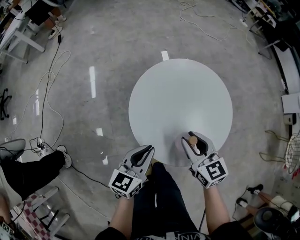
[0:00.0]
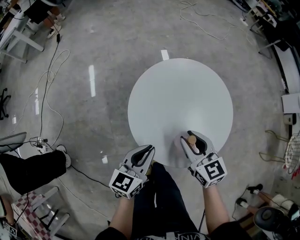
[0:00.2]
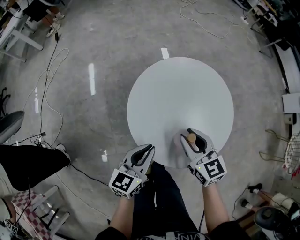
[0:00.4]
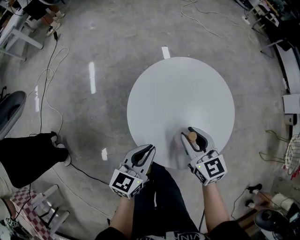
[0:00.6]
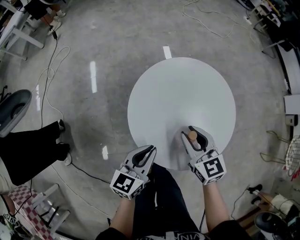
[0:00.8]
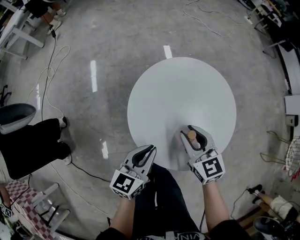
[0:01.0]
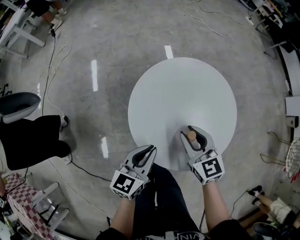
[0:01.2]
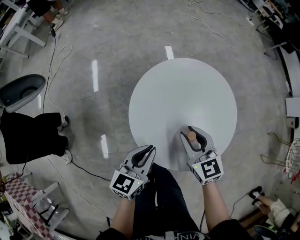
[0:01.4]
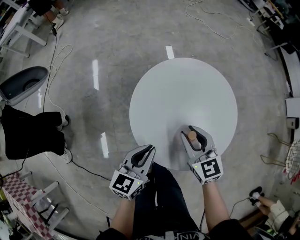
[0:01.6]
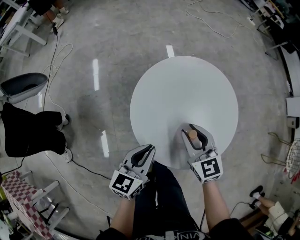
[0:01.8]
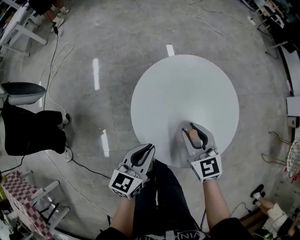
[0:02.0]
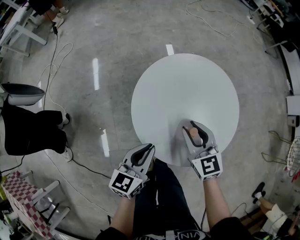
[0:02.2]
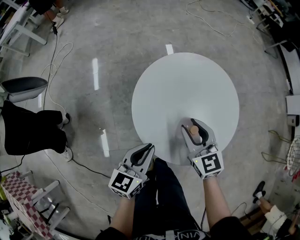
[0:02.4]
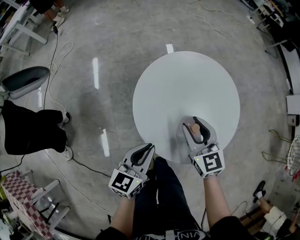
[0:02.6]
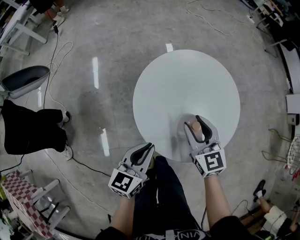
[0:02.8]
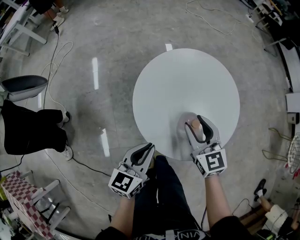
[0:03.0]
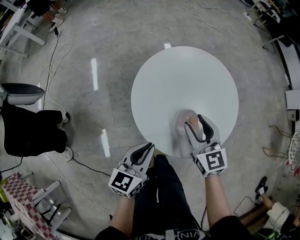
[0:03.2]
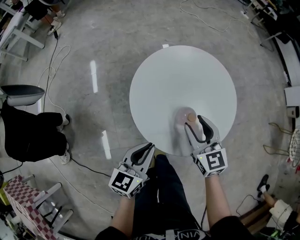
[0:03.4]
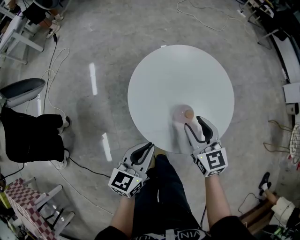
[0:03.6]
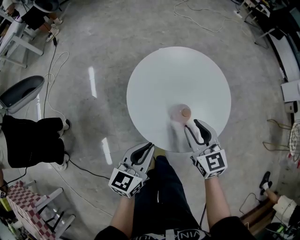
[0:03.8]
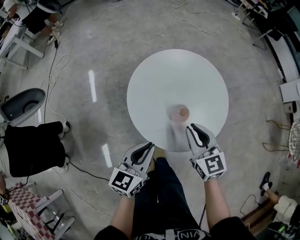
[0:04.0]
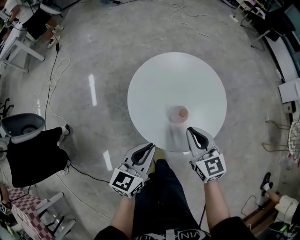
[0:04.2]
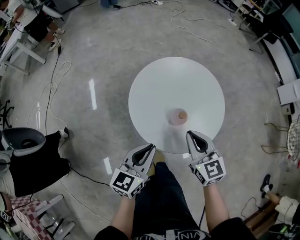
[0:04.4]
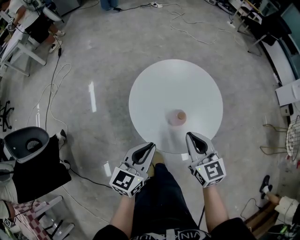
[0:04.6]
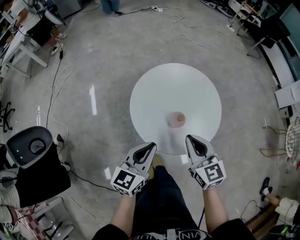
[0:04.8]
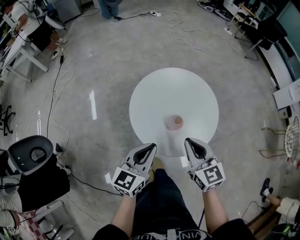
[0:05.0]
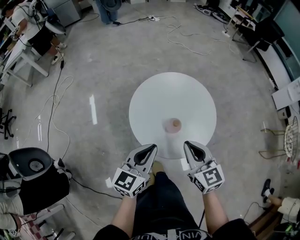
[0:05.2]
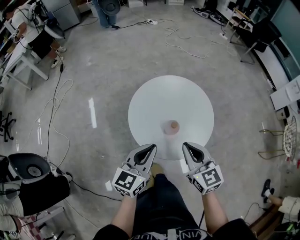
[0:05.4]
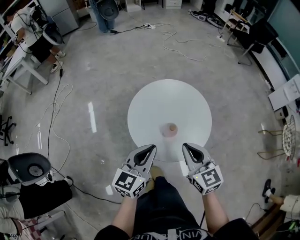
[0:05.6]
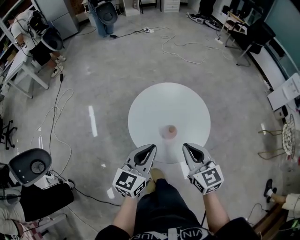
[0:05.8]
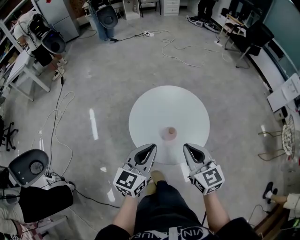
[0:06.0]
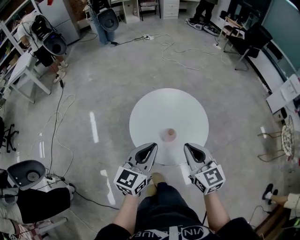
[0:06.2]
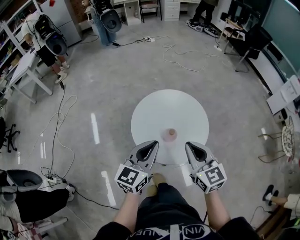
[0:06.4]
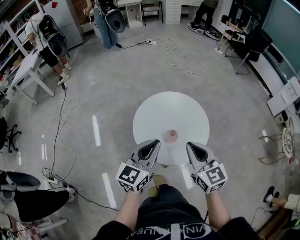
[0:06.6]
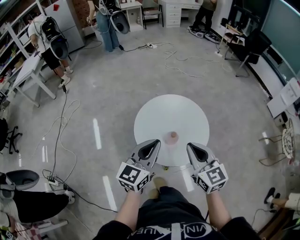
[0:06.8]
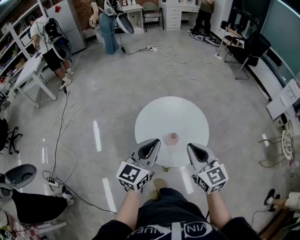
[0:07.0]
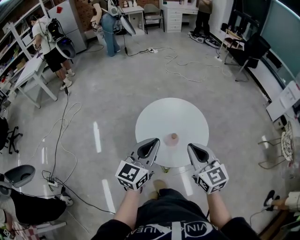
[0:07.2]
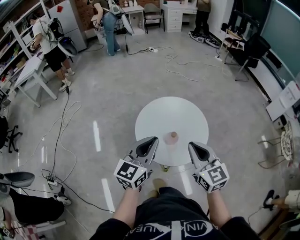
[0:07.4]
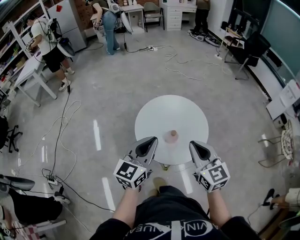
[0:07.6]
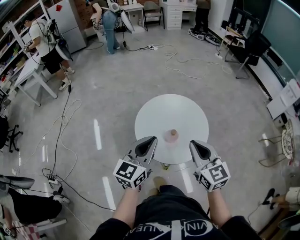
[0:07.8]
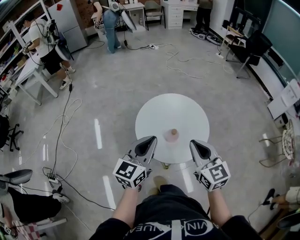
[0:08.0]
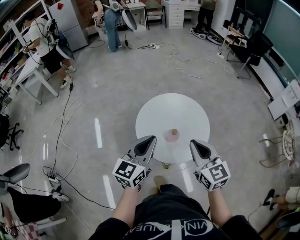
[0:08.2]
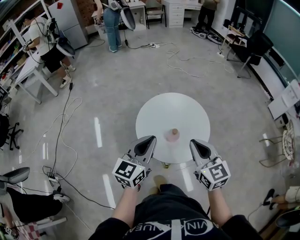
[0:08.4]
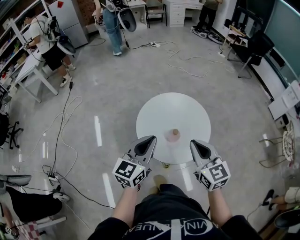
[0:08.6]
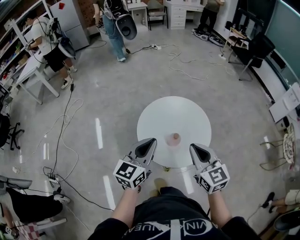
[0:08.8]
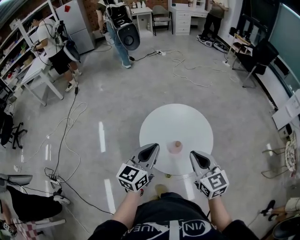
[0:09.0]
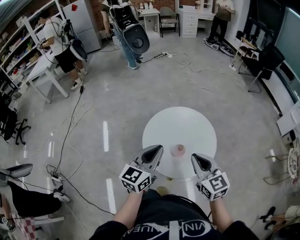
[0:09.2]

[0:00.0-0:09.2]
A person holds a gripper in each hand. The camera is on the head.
0:00.0 to 0:03.0: The grippers move only a little.
0:03.0 to 0:04.6: The left gripper travels upward by roughly 5 cm, while the right gripper heads backward and upward, covering about 10 cm, and closes its fingers.
0:04.6 to 0:06.2: Both grippers move upward, some 10 cm.
0:06.2 to 0:07.6: The right gripper moves about 5 cm. Meanwhile the left gripper shifts by roughly 5 cm.
0:07.6 to 0:09.2: The grippers move only a little.

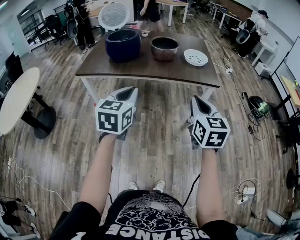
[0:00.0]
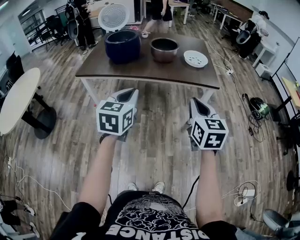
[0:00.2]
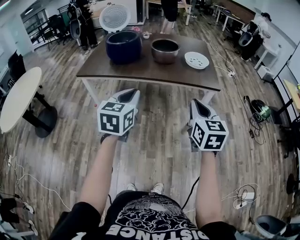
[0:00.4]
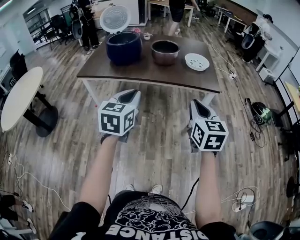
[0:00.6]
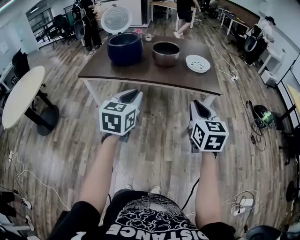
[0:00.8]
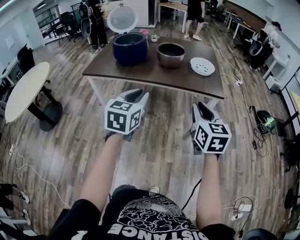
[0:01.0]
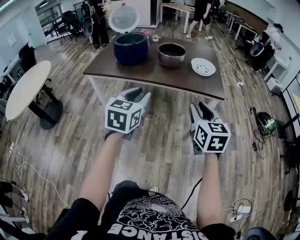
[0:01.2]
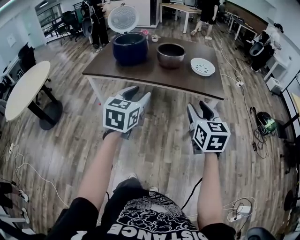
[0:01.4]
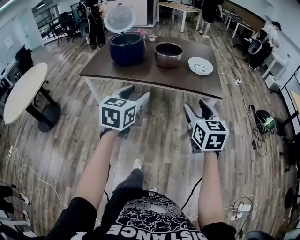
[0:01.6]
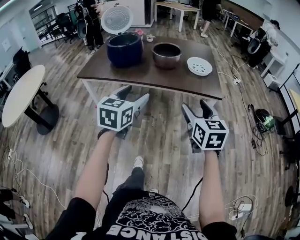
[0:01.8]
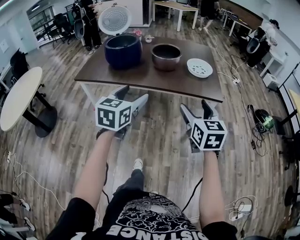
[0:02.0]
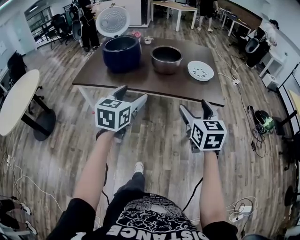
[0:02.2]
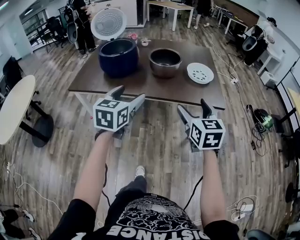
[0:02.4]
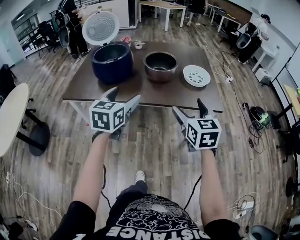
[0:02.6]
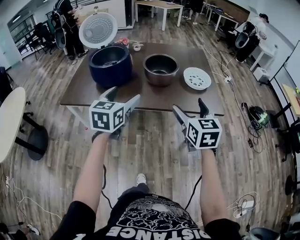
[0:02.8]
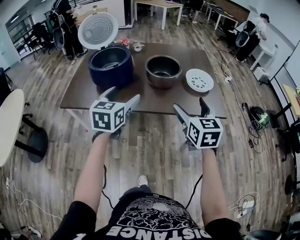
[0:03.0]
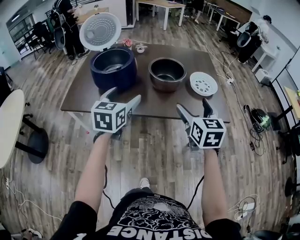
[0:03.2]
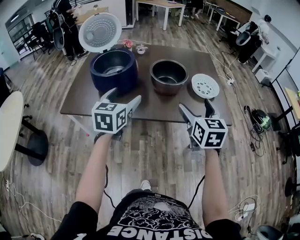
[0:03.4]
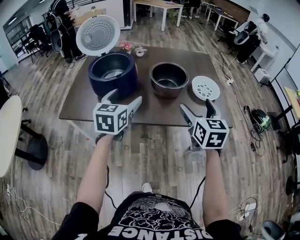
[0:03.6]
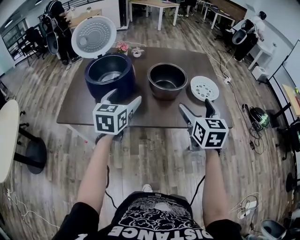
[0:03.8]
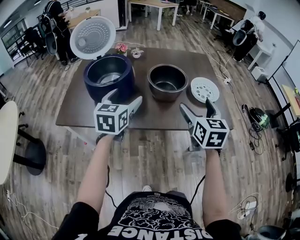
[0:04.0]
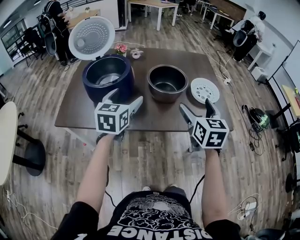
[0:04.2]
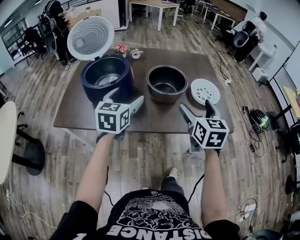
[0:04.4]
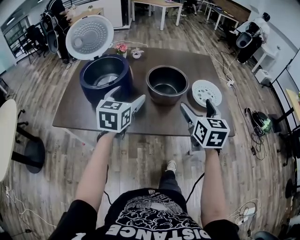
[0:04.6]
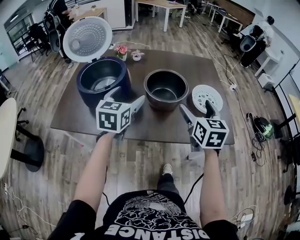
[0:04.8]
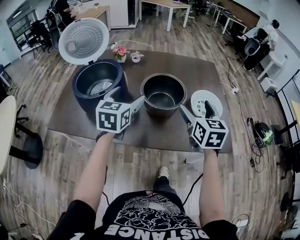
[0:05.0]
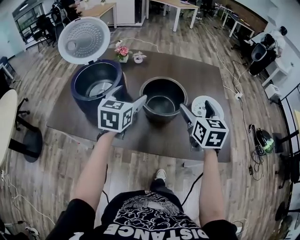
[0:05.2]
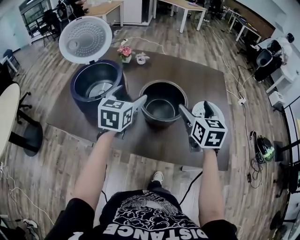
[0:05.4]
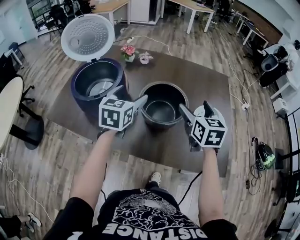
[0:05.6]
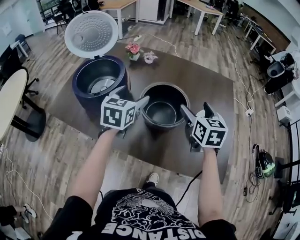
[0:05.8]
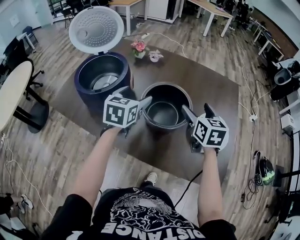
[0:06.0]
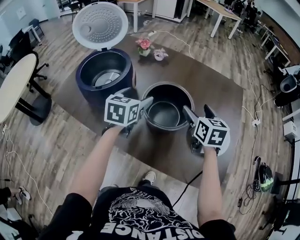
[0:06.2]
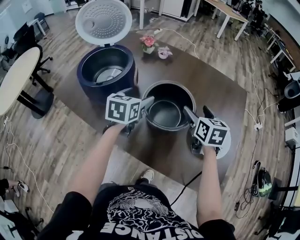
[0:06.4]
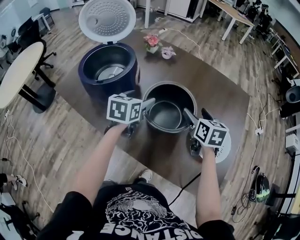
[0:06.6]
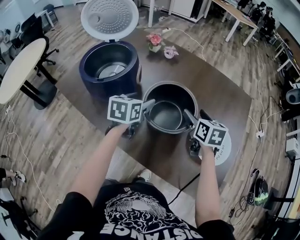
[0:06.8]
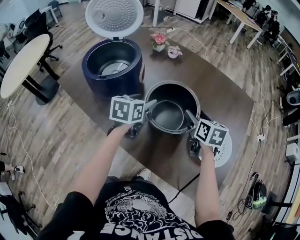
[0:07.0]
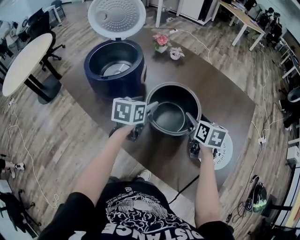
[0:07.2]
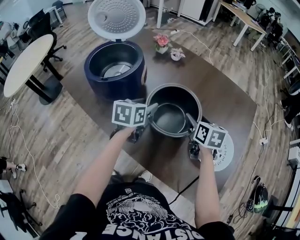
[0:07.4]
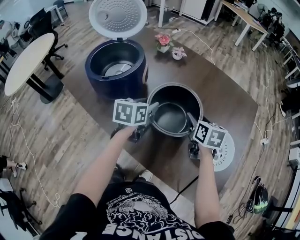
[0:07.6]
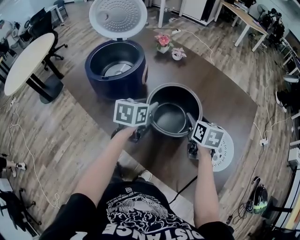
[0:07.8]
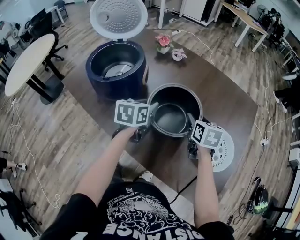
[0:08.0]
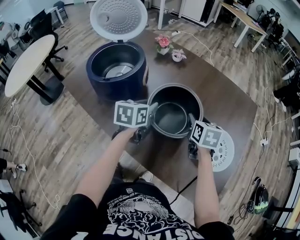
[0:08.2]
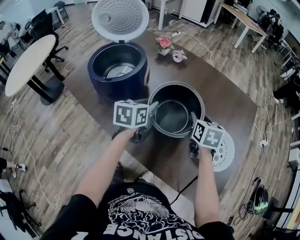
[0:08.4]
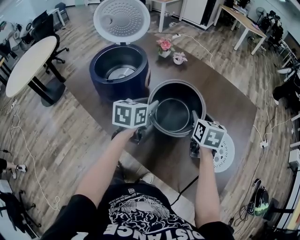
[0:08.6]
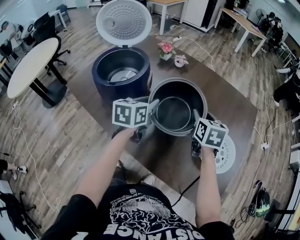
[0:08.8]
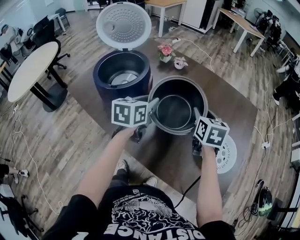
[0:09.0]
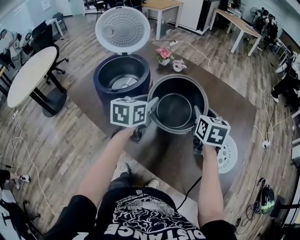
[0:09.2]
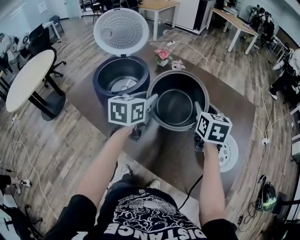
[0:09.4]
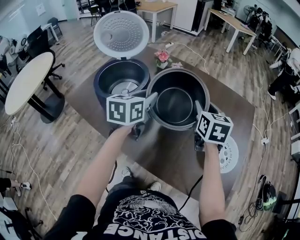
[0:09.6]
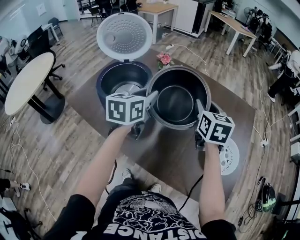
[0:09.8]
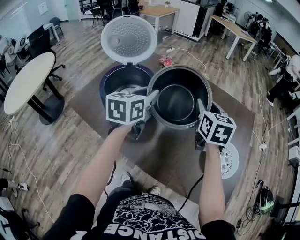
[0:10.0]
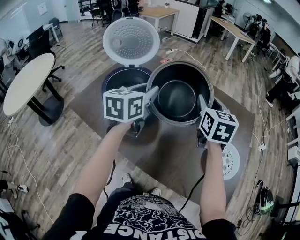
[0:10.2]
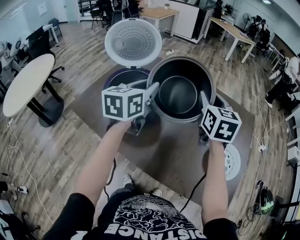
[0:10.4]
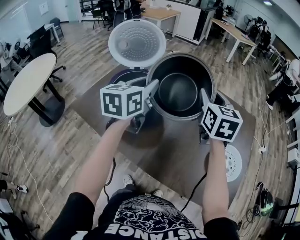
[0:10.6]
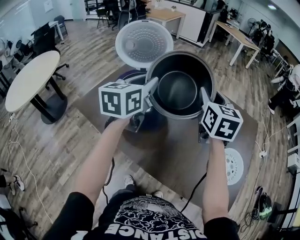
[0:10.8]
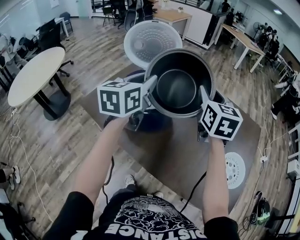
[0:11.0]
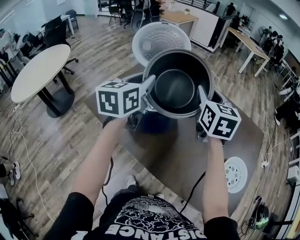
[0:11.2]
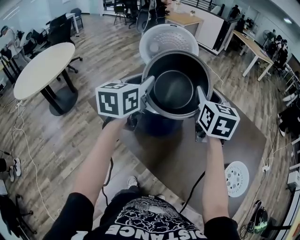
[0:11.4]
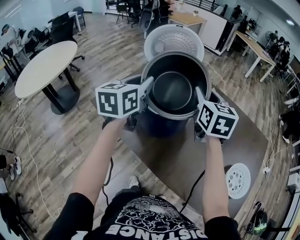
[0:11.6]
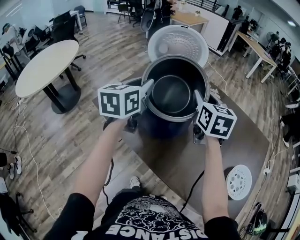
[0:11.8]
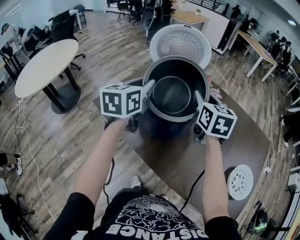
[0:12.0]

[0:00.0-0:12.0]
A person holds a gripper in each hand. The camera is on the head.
0:00.0 to 0:01.6: The left gripper is displaced to the right by about 5 cm, and opens, while the right gripper moves forward, approximately 5 cm, and opens.
0:01.6 to 0:03.0: The right gripper shifts roughly 25 cm forward, and opens, while the left gripper moves forward and to the left, roughly 30 cm, and opens its fingers.
0:03.0 to 0:04.4: Both grippers travel together forward, roughly 15 cm.
0:04.4 to 0:06.0: The grippers both shift forward by roughly 20 cm. The right gripper rotates approximately 20 degrees.
0:06.0 to 0:07.6: Both grippers travel together downward, approximately 10 cm. The right gripper closes, while the left gripper turns by about 20 degrees, and closes its fingers.
0:07.6 to 0:09.0: Both grippers travel together upward, about 5 cm.
0:09.0 to 0:10.4: The two grippers go about 15 cm upward and to the left.
0:10.4 to 0:12.0: Both grippers move to the left, about 20 cm.

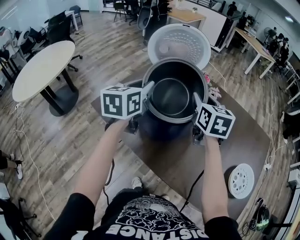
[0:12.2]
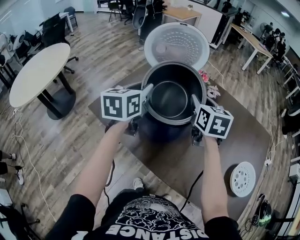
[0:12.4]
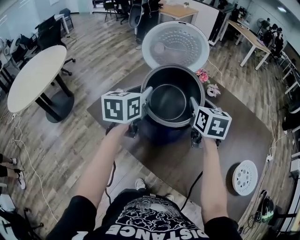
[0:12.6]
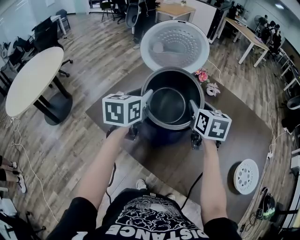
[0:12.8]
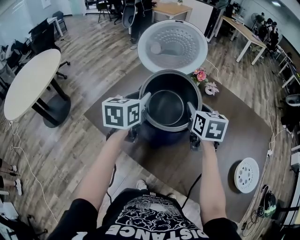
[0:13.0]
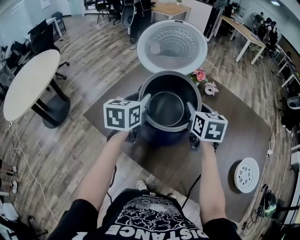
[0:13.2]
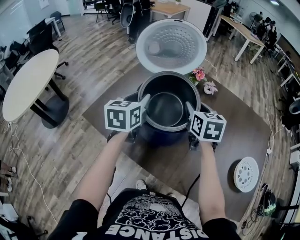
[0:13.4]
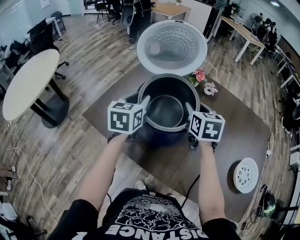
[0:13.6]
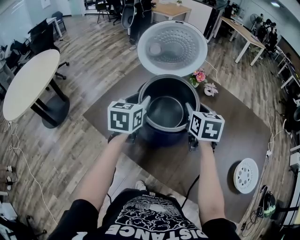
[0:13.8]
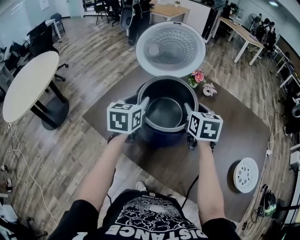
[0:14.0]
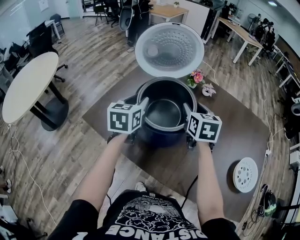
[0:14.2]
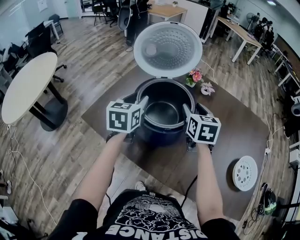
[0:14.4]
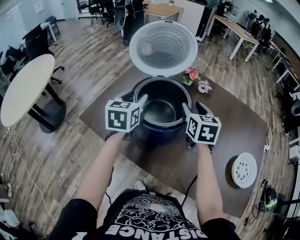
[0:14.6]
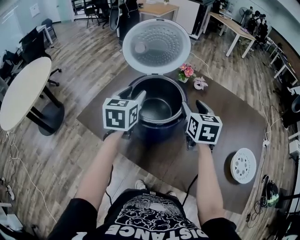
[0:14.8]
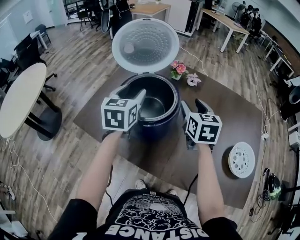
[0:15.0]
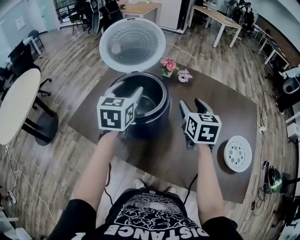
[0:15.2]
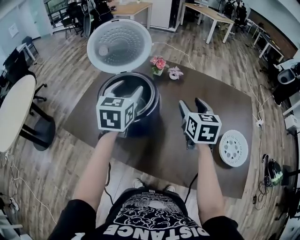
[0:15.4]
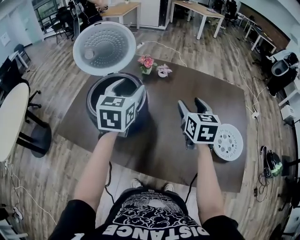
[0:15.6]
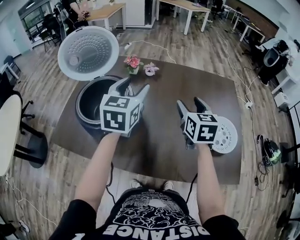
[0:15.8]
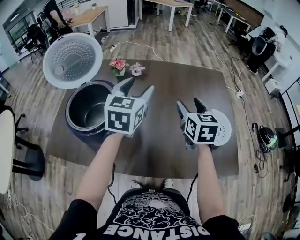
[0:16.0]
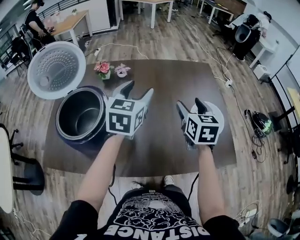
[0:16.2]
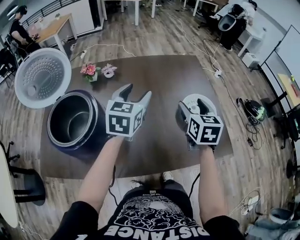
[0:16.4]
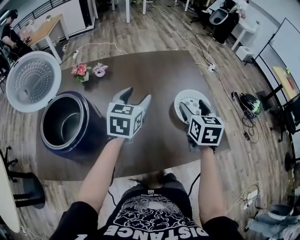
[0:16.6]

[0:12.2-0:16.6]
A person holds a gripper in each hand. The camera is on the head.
0:12.2 to 0:13.6: The grippers both shift downward by roughly 10 cm.
0:13.6 to 0:15.2: The right gripper shifts approximately 10 cm to the right and backward; the left gripper travels to the right and upward by some 10 cm.
0:15.2 to 0:16.6: The left gripper ends up roughly 35 cm from where it was, and changes its angle by approximately 40 degrees, while the right gripper ends up some 35 cm from where it was, and turns by approximately 40 degrees.
